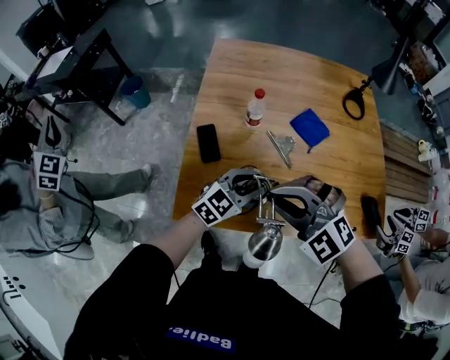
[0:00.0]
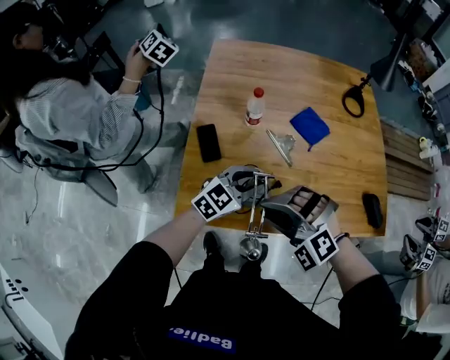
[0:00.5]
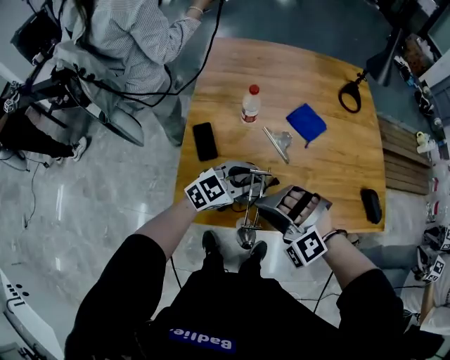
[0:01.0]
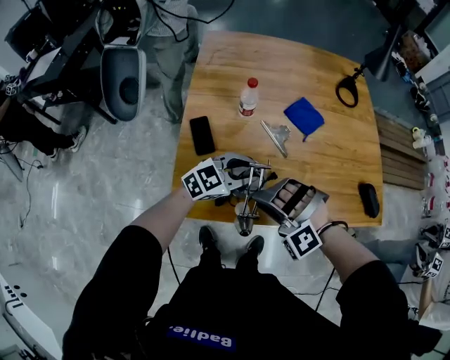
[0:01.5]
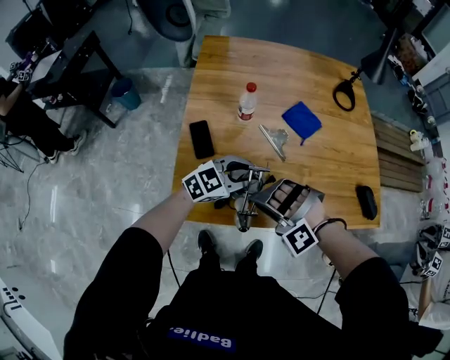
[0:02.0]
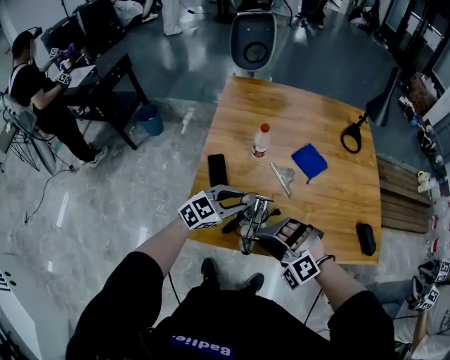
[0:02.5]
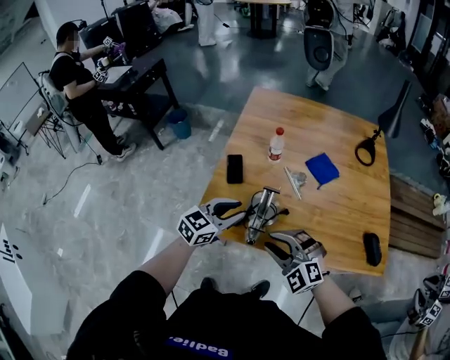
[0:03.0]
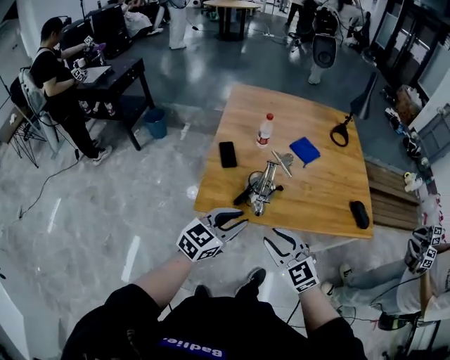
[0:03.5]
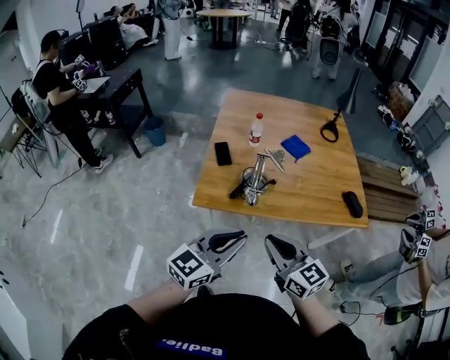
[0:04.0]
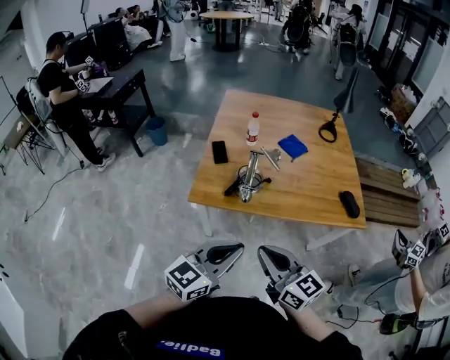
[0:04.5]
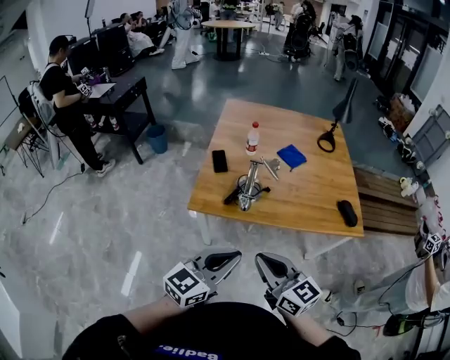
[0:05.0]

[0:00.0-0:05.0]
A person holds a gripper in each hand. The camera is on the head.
0:00.0 to 0:02.5: The right gripper travels downward and backward by approximately 10 cm, and changes its angle by approximately 30 degrees. Meanwhile the left gripper is displaced to the left by some 5 cm.
0:02.5 to 0:05.0: Both grippers move backward and upward, approximately 40 cm. The right gripper twists approximately 80 degrees clockwise, seen from behind, and closes its fingers. Meanwhile the left gripper changes its angle by approximately 30 degrees, and closes its fingers.

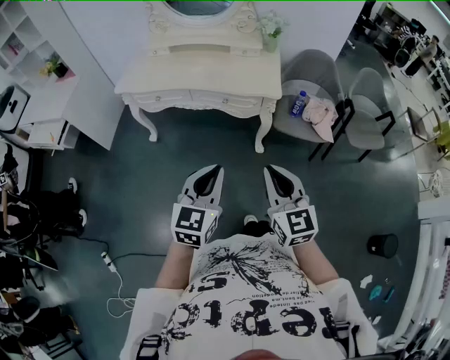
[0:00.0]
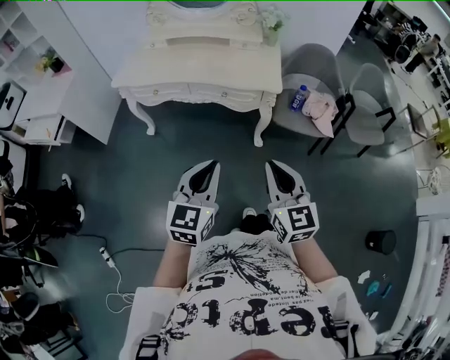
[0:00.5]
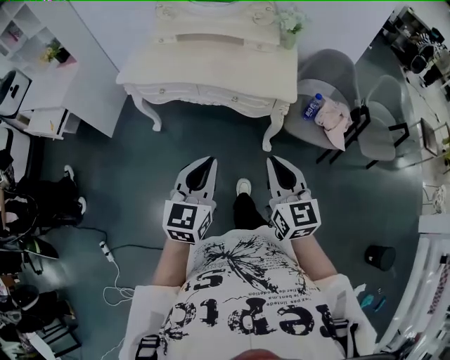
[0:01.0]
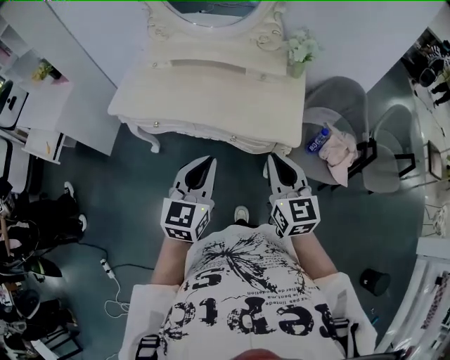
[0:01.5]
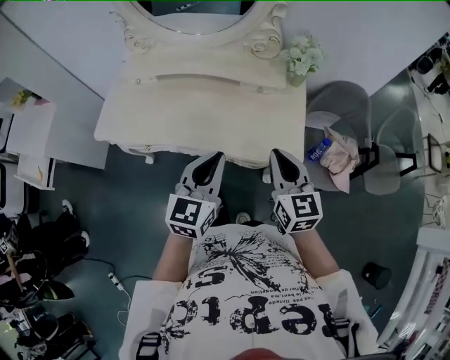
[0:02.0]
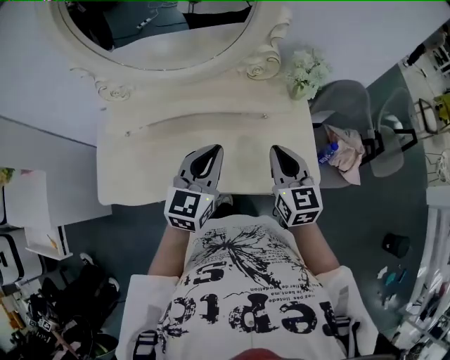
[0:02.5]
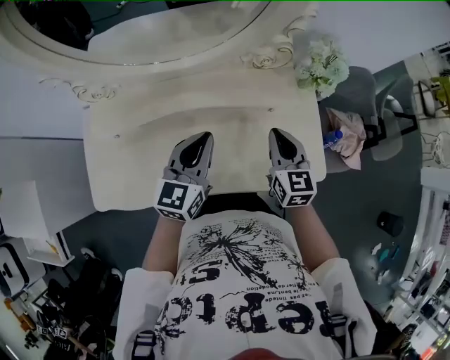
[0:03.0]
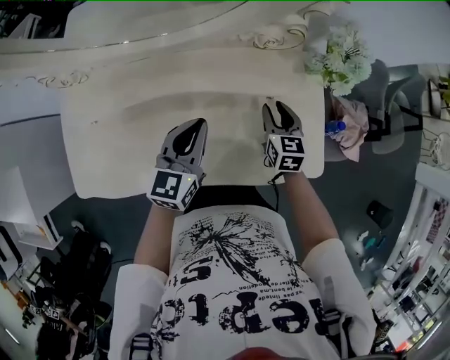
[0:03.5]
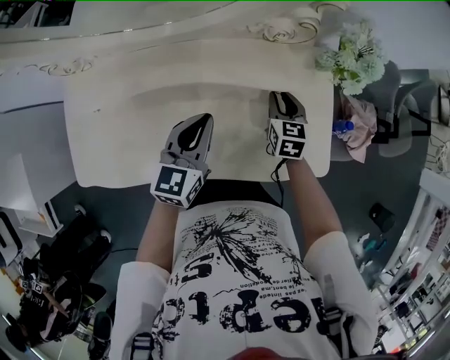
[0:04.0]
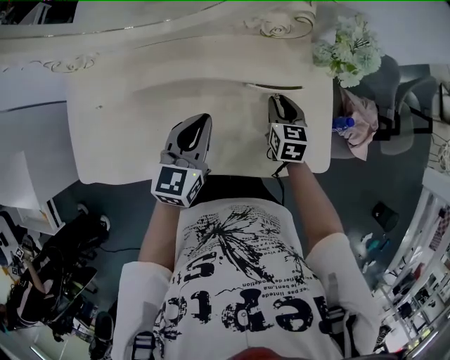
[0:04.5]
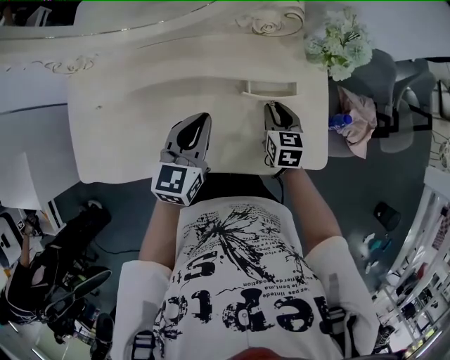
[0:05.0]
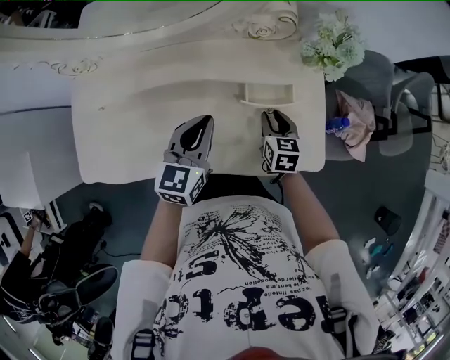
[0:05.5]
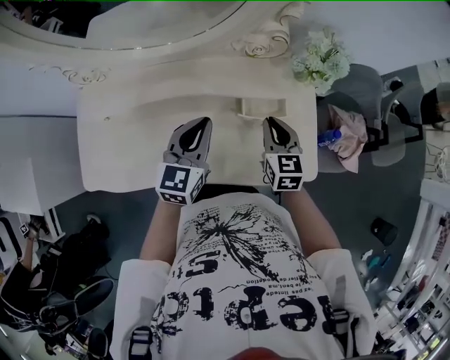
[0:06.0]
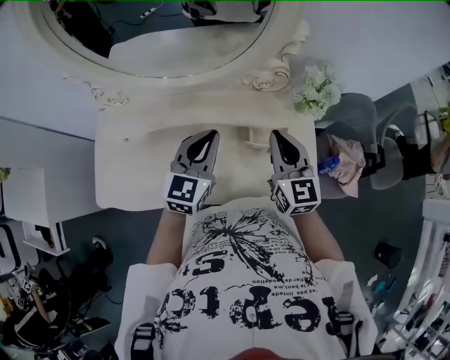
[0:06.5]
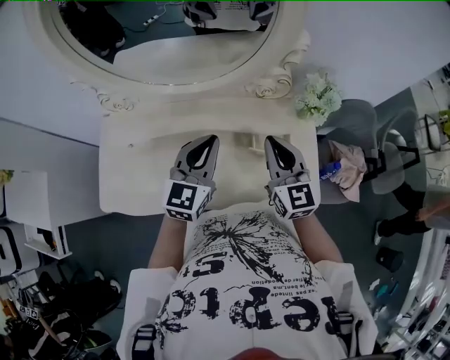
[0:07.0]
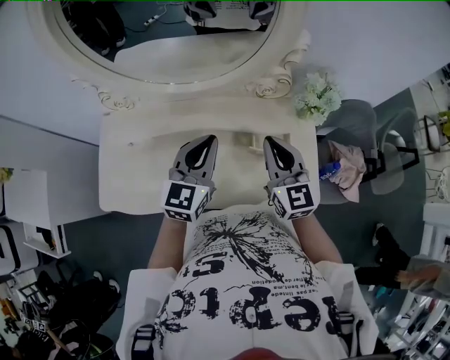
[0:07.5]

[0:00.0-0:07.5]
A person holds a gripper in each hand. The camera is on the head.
0:00.0 to 0:02.0: Both grippers are carried forward, some 50 cm.
0:02.0 to 0:04.0: The right gripper moves forward and downward, some 35 cm, rotates about 30 degrees, and opens its fingers, while the left gripper travels forward, downward and to the left by some 25 cm.
0:04.0 to 0:05.5: The right gripper shifts roughly 5 cm backward.
0:05.5 to 0:07.5: The left gripper travels upward by about 10 cm. Meanwhile the right gripper heads upward, covering approximately 25 cm, tips its fingers upward by approximately 30 degrees, and closes its fingers.

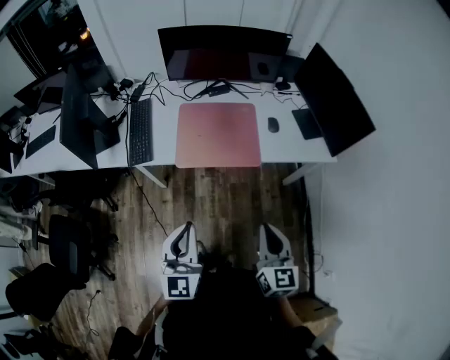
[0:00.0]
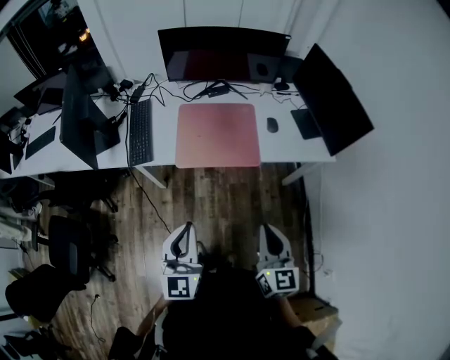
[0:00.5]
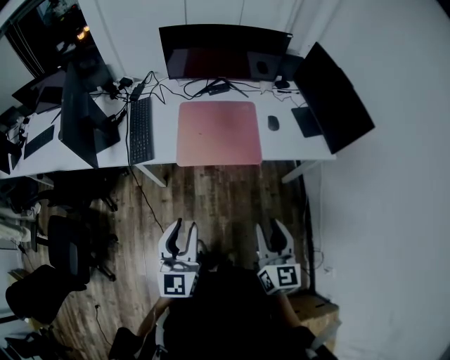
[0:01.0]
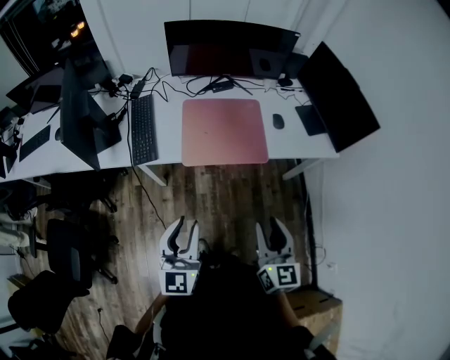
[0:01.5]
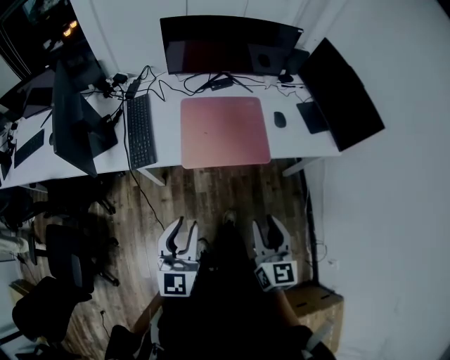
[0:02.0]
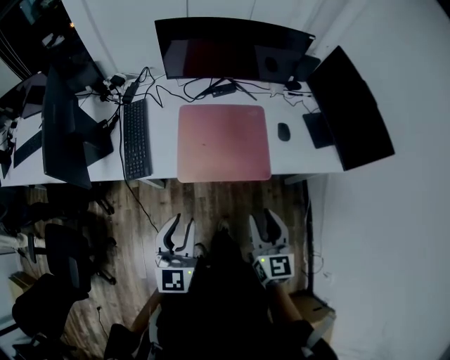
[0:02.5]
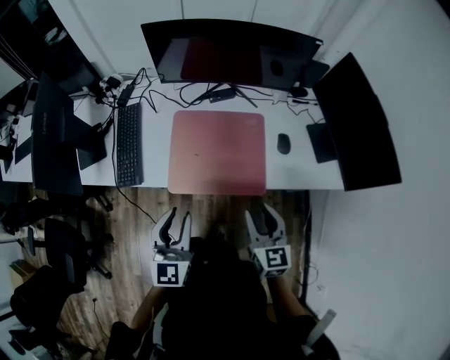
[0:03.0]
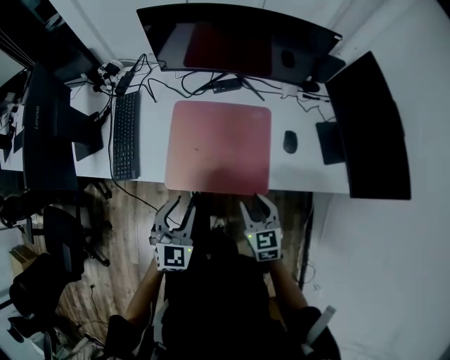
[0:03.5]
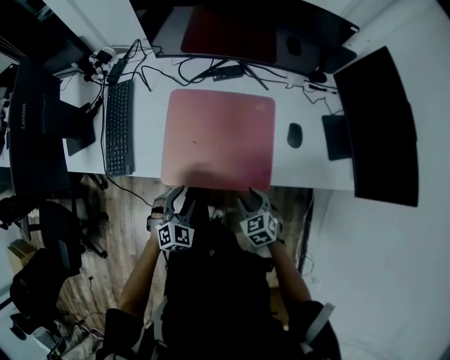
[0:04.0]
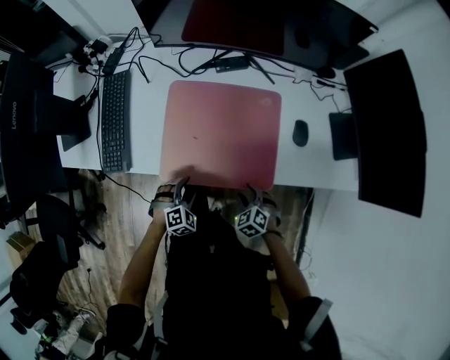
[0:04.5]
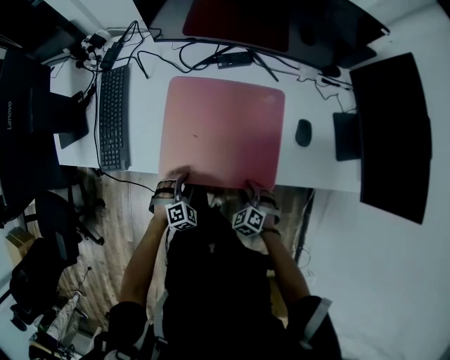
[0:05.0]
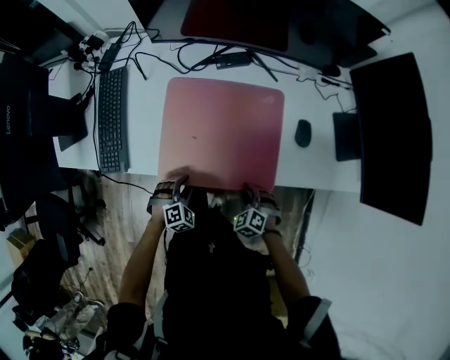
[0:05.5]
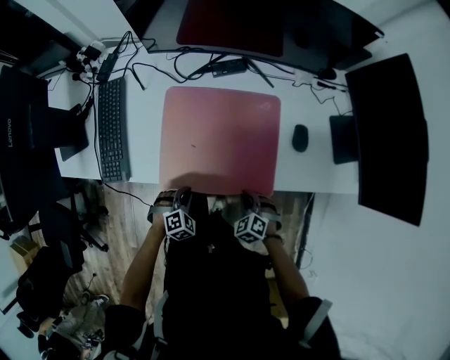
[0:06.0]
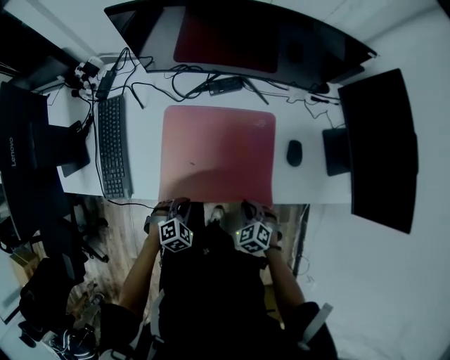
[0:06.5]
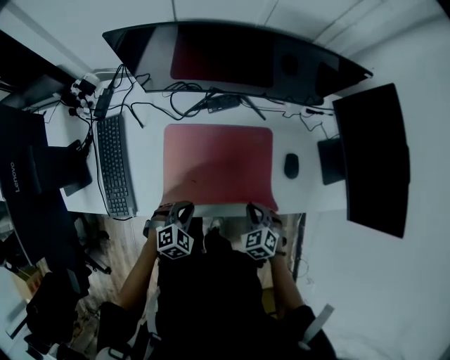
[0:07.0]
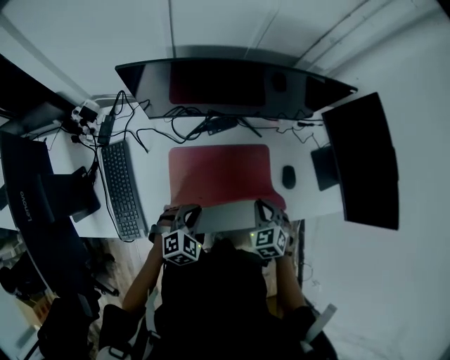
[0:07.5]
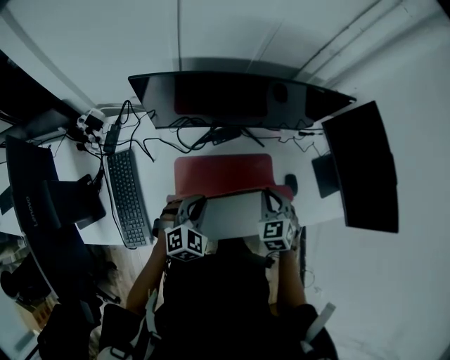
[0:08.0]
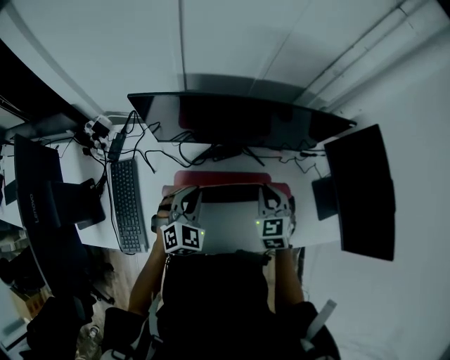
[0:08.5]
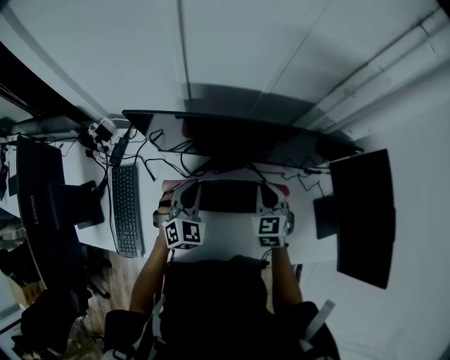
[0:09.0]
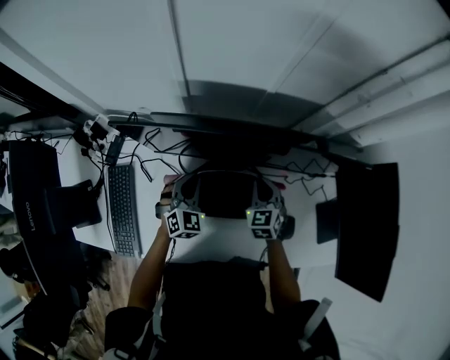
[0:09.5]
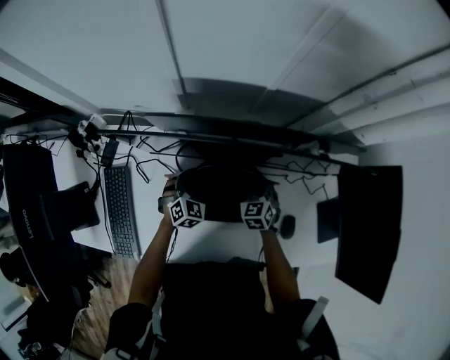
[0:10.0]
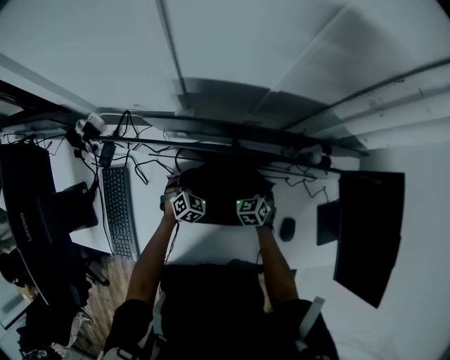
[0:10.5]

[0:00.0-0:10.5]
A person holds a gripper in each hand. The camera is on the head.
0:00.0 to 0:02.0: The grippers both shift to the left by approximately 10 cm. The right gripper opens its fingers. The left gripper opens up.
0:02.0 to 0:04.0: The two grippers go some 35 cm downward and forward. The left gripper tilts its fingers about 40 degrees downward; the right gripper angles its fingers downward, by roughly 40 degrees.
0:04.0 to 0:06.5: The right gripper goes downward and returns, roughly 10 cm each way, and closes up; the left gripper is displaced downward by approximately 5 cm, rotates approximately 20 degrees, and closes up.
0:06.5 to 0:08.5: Both grippers move forward and upward, about 35 cm. The right gripper changes its angle by some 30 degrees. The left gripper angles its fingers upward, by approximately 30 degrees.
0:08.5 to 0:10.5: Both grippers travel together downward and forward, about 25 cm.

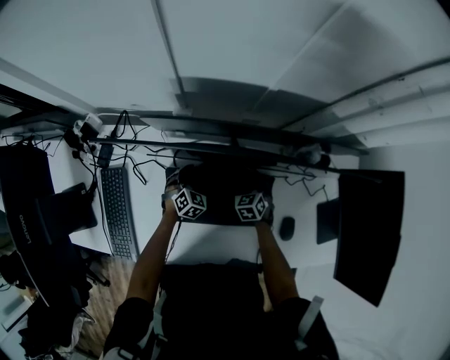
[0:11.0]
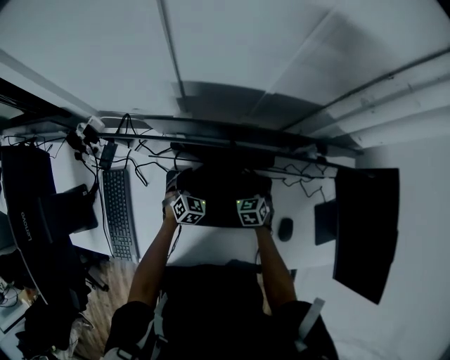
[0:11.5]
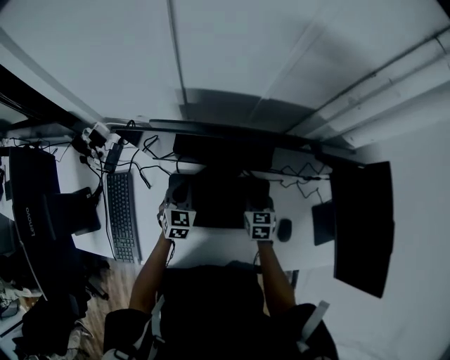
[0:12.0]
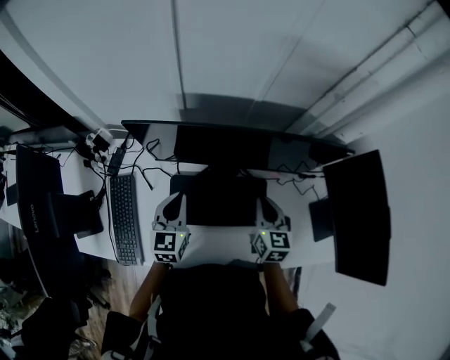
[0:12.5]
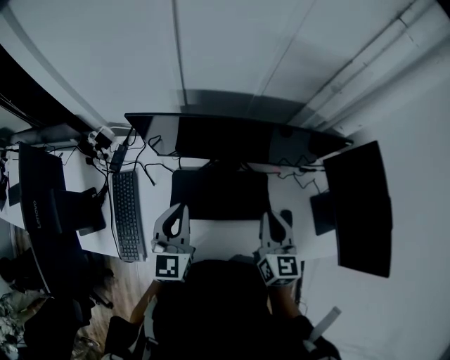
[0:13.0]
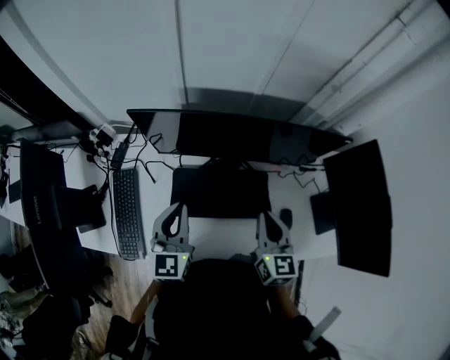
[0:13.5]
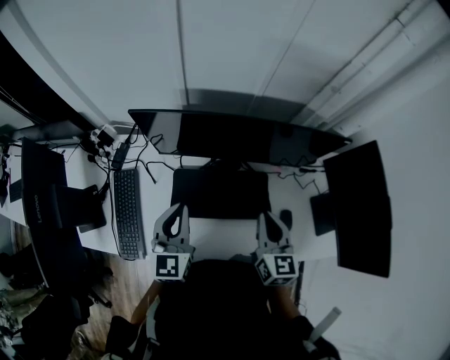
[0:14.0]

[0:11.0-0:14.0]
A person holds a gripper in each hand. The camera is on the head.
0:11.0 to 0:12.5: The right gripper moves upward, roughly 25 cm, and rotates roughly 40 degrees, while the left gripper is displaced upward and backward by about 30 cm, and turns by approximately 40 degrees.
0:12.5 to 0:14.0: The left gripper is displaced upward and backward by about 10 cm. Meanwhile the right gripper goes approximately 10 cm backward and upward.
